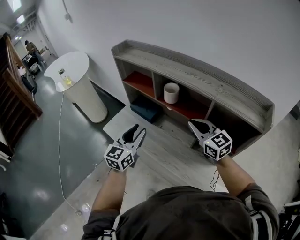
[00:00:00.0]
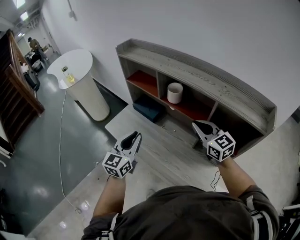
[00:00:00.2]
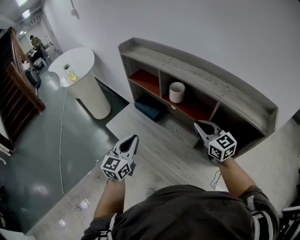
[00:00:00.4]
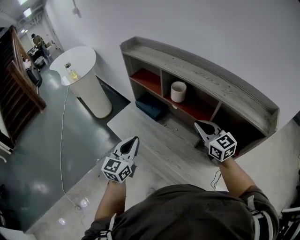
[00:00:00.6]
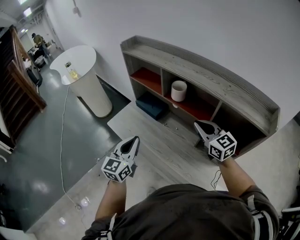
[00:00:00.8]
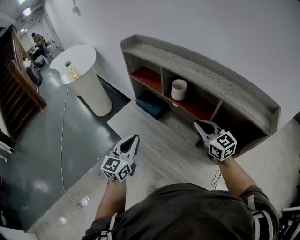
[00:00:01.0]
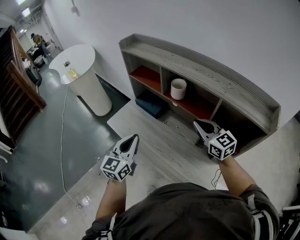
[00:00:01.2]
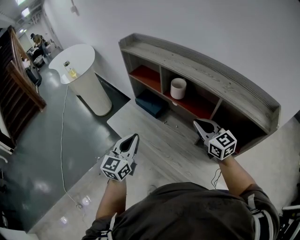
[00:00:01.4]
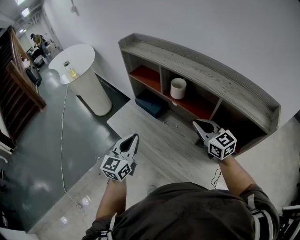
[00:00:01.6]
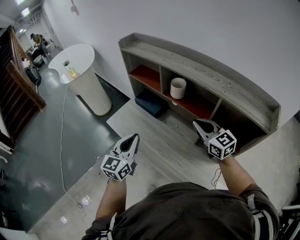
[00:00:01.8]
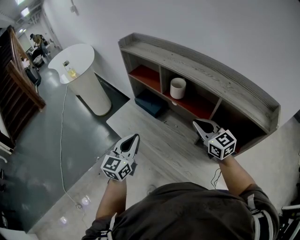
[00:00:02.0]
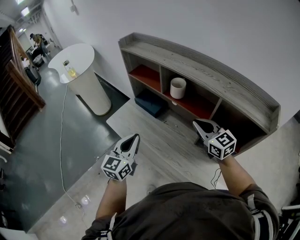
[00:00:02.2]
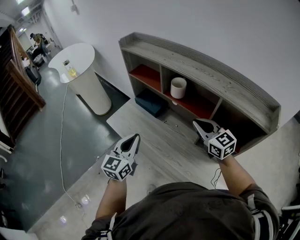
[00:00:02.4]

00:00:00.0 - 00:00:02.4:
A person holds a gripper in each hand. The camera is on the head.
00:00:00.0 - 00:00:01.2: The left gripper heads backward, covering approximately 5 cm, and closes its fingers.
00:00:01.2 - 00:00:02.4: The two grippers keep their place.

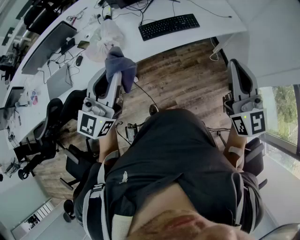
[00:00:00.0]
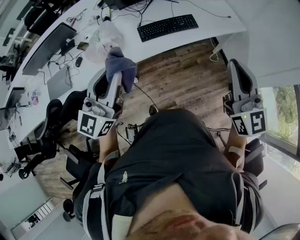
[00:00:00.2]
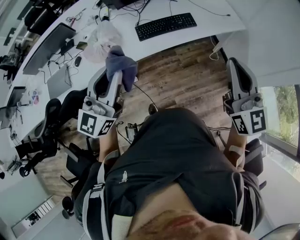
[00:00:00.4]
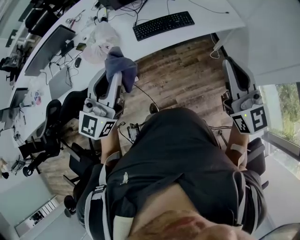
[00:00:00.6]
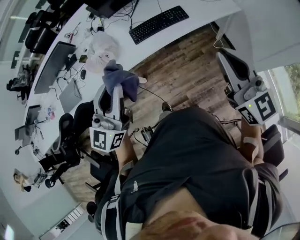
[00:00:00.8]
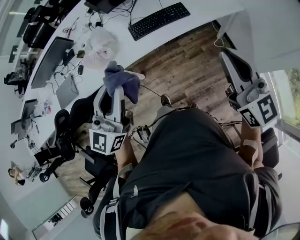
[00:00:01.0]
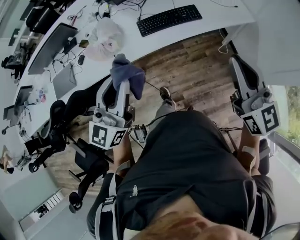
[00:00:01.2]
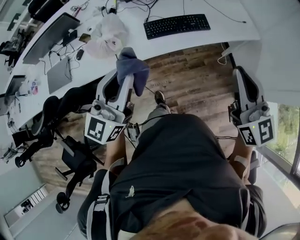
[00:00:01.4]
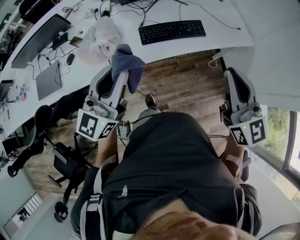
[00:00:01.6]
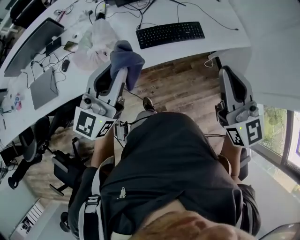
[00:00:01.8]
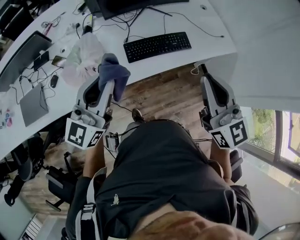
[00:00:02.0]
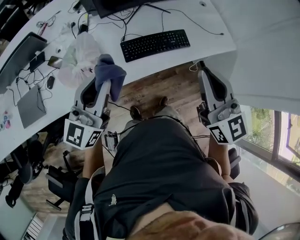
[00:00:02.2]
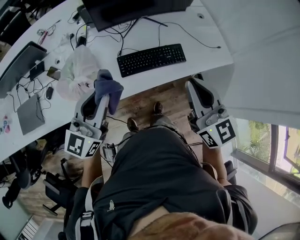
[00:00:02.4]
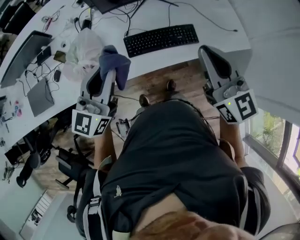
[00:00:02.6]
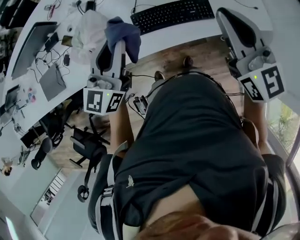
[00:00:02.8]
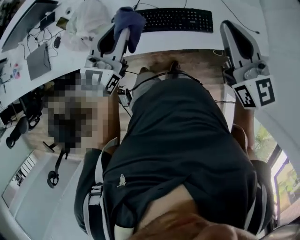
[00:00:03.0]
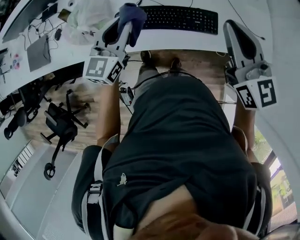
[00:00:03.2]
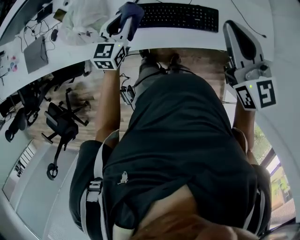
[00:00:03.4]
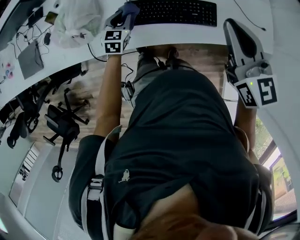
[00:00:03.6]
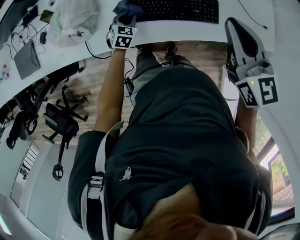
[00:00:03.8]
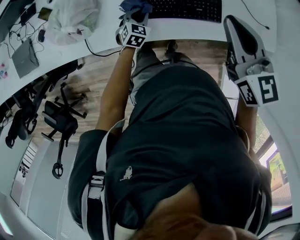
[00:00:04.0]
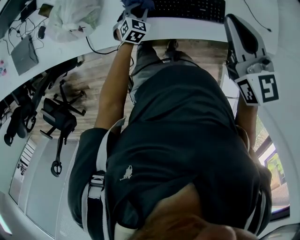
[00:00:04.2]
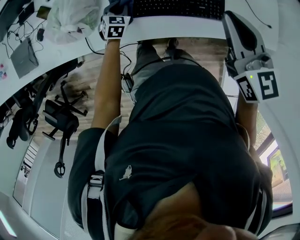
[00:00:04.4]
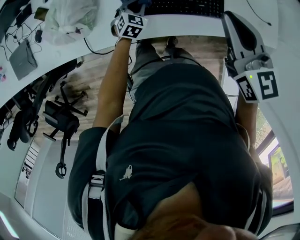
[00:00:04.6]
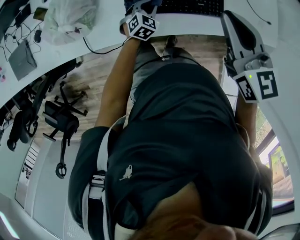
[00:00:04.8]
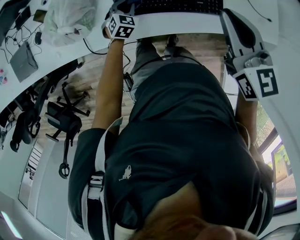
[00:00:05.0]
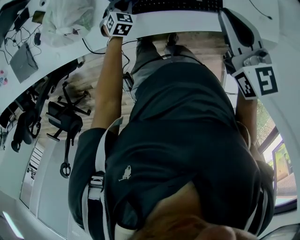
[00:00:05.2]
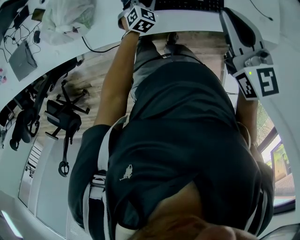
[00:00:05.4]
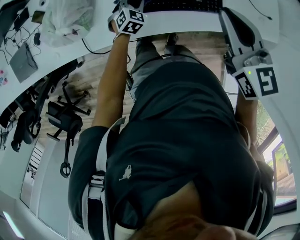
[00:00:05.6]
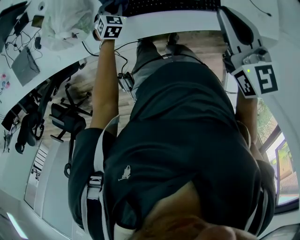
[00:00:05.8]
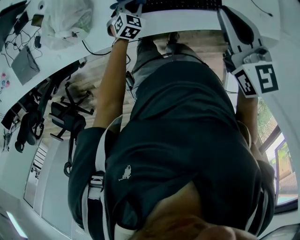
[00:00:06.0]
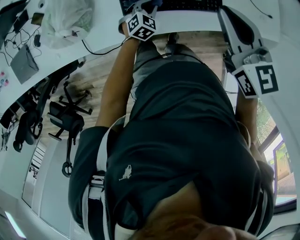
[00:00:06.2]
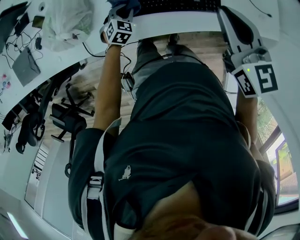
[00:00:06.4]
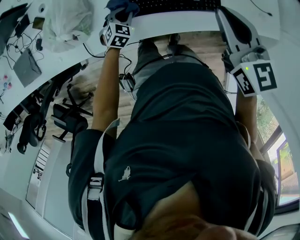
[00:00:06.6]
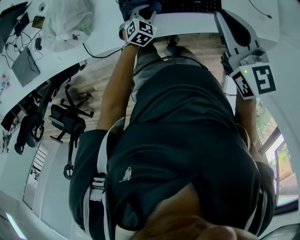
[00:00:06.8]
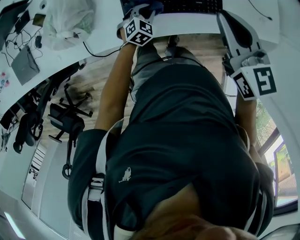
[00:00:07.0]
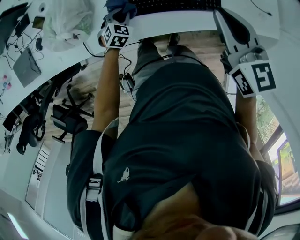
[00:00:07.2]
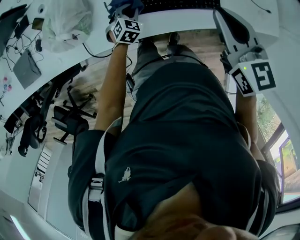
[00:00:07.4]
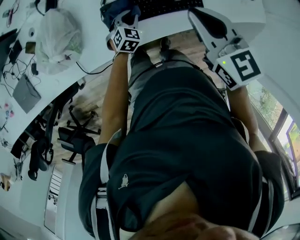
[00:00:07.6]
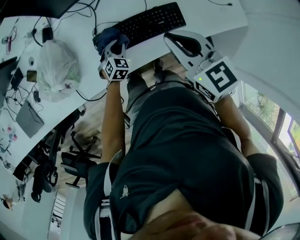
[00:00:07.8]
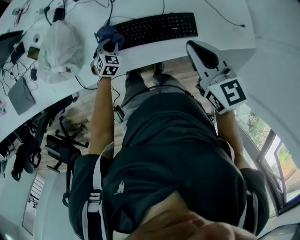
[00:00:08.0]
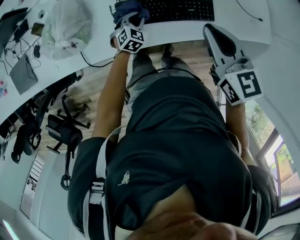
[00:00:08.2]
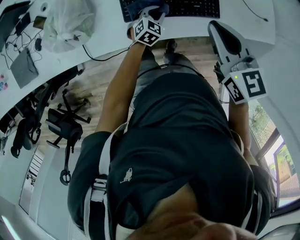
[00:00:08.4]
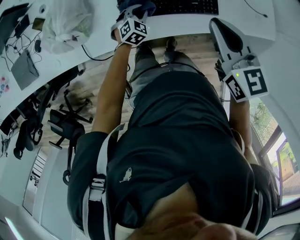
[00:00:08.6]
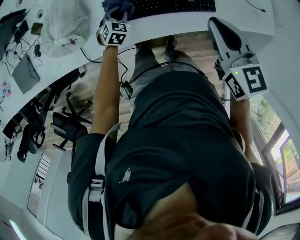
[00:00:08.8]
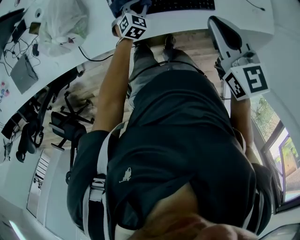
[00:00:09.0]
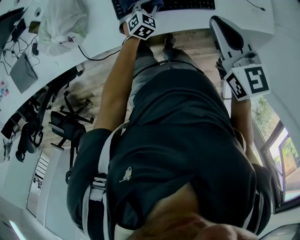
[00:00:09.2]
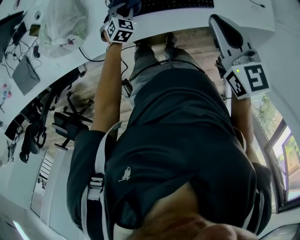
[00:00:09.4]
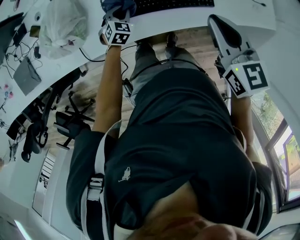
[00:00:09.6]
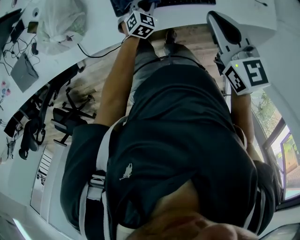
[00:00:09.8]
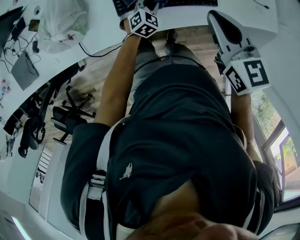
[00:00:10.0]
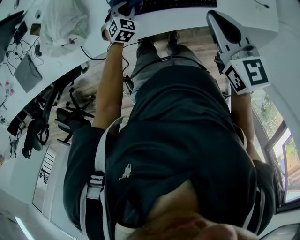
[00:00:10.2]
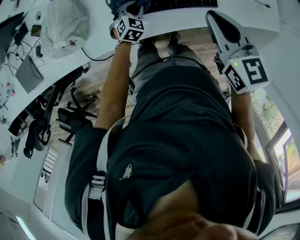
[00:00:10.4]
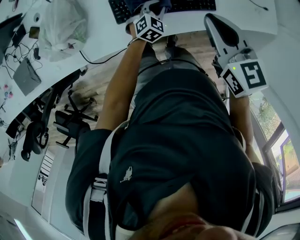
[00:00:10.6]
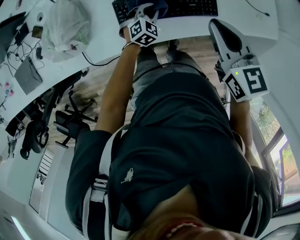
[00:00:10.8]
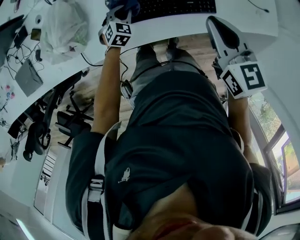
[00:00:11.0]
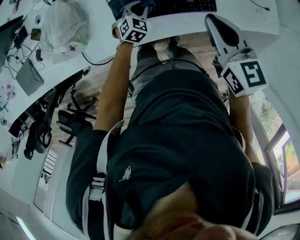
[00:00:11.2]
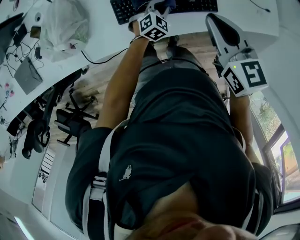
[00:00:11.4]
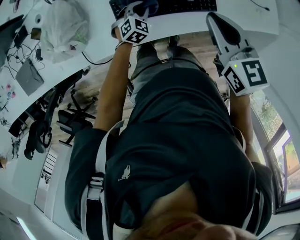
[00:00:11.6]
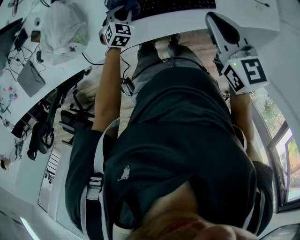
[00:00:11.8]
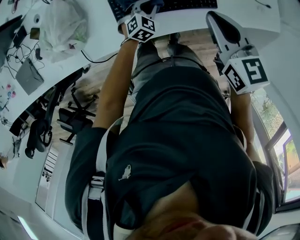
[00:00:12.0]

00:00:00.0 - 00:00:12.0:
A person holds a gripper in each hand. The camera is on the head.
00:00:00.0 - 00:00:01.6: Both grippers move forward, about 10 cm. The right gripper goes to the right and returns, approximately 10 cm each way.
00:00:01.6 - 00:00:03.0: The left gripper moves forward and downward, some 25 cm. The right gripper heads forward, covering approximately 30 cm.
00:00:03.0 - 00:00:04.4: The right gripper heads downward and forward, covering roughly 10 cm, while the left gripper heads downward, covering approximately 35 cm, and points its fingers some 40 degrees further downward.
00:00:04.4 - 00:00:06.0: The left gripper swings left and right, some 15 cm each way, with 4 reversals.
00:00:06.0 - 00:00:07.6: The left gripper moves left and right over approximately 10 cm, changing direction 4 times.
00:00:07.6 - 00:00:09.0: The left gripper swings left and right, approximately 15 cm each way, with 3 reversals.
00:00:09.0 - 00:00:10.4: The left gripper swings left and right, approximately 10 cm each way, with 3 reversals.
00:00:10.4 - 00:00:12.0: The left gripper goes left and right, about 15 cm each way, reversing 4 times.

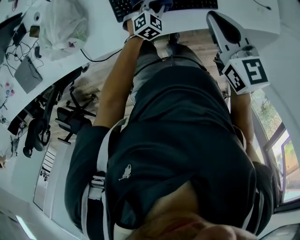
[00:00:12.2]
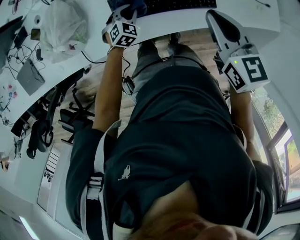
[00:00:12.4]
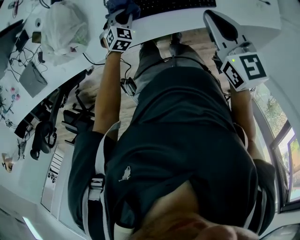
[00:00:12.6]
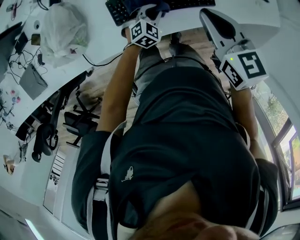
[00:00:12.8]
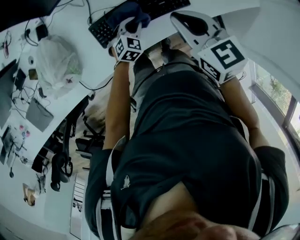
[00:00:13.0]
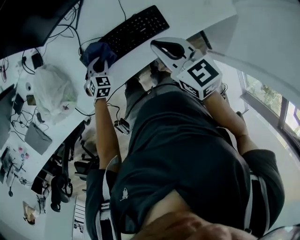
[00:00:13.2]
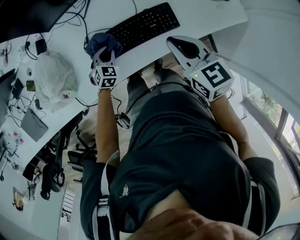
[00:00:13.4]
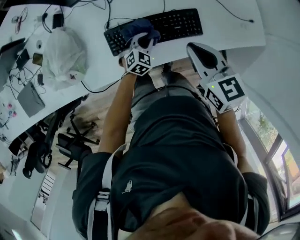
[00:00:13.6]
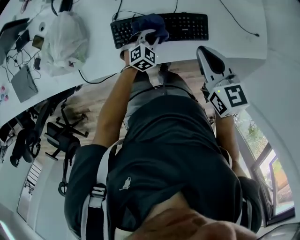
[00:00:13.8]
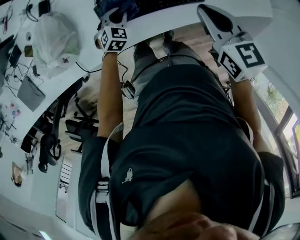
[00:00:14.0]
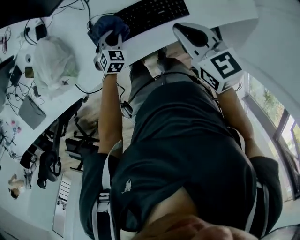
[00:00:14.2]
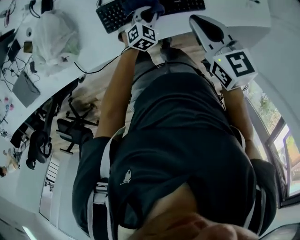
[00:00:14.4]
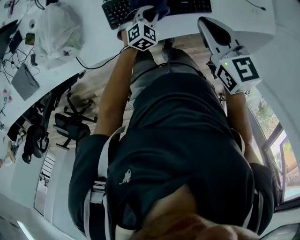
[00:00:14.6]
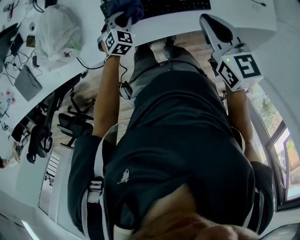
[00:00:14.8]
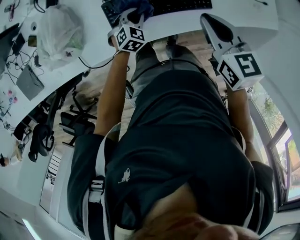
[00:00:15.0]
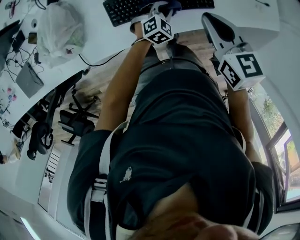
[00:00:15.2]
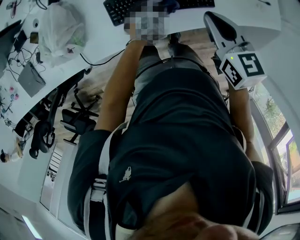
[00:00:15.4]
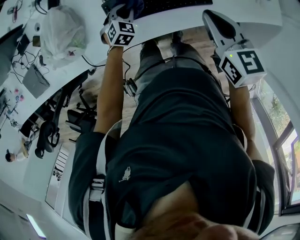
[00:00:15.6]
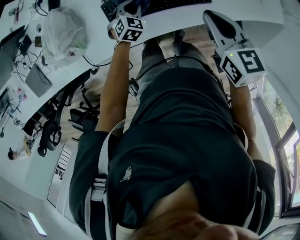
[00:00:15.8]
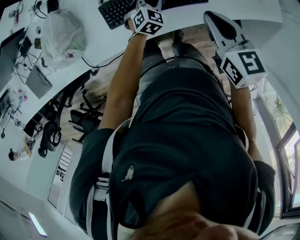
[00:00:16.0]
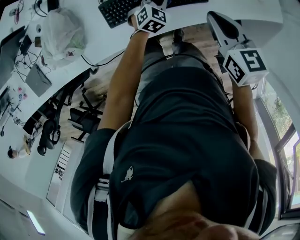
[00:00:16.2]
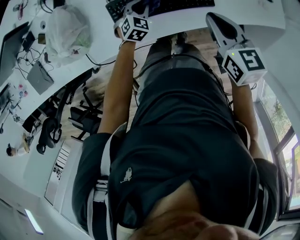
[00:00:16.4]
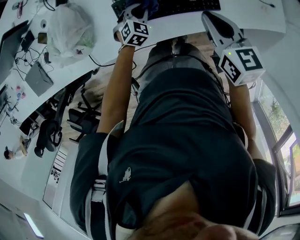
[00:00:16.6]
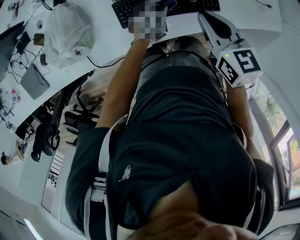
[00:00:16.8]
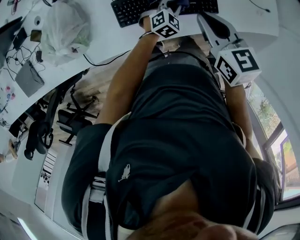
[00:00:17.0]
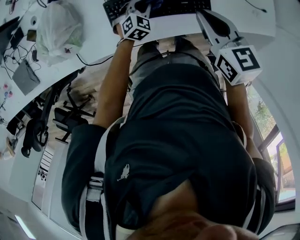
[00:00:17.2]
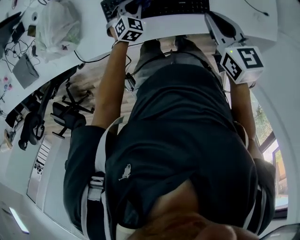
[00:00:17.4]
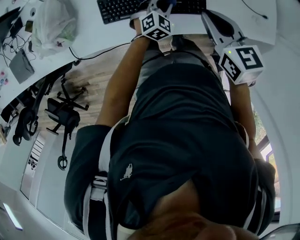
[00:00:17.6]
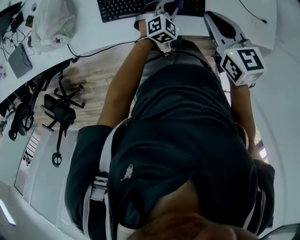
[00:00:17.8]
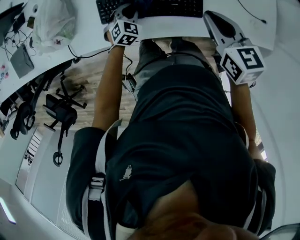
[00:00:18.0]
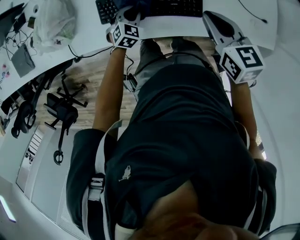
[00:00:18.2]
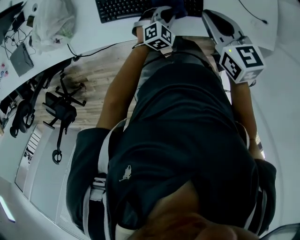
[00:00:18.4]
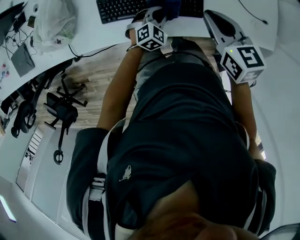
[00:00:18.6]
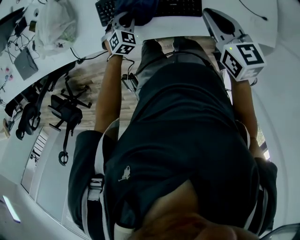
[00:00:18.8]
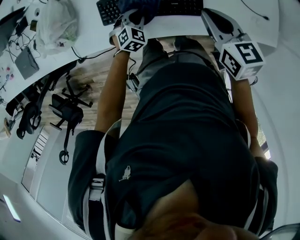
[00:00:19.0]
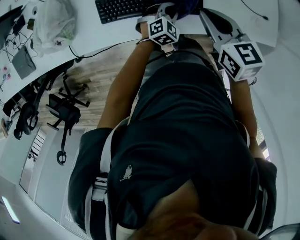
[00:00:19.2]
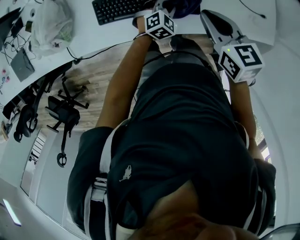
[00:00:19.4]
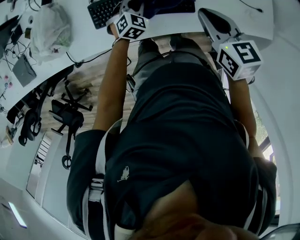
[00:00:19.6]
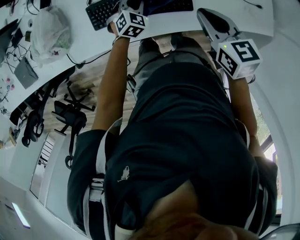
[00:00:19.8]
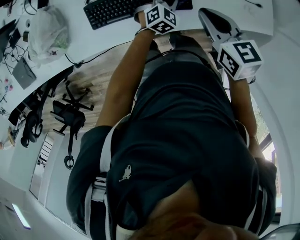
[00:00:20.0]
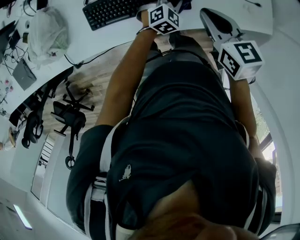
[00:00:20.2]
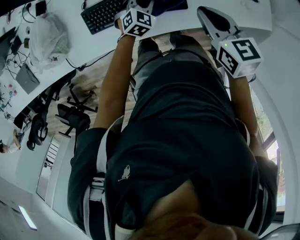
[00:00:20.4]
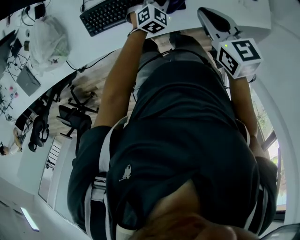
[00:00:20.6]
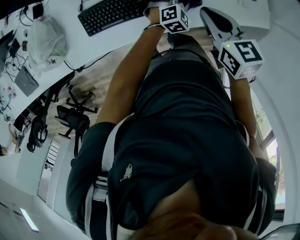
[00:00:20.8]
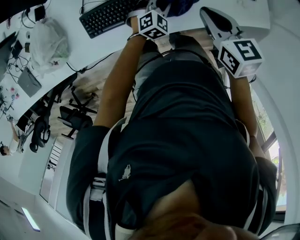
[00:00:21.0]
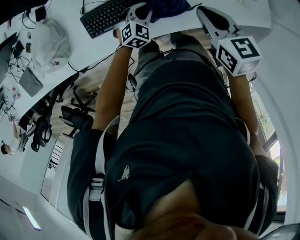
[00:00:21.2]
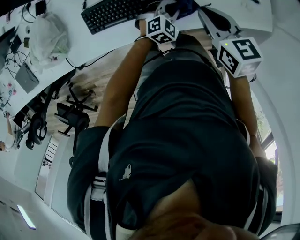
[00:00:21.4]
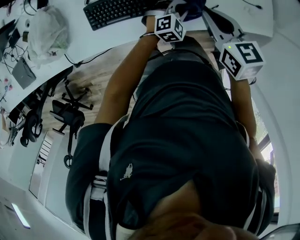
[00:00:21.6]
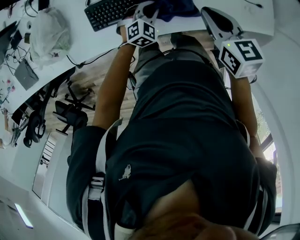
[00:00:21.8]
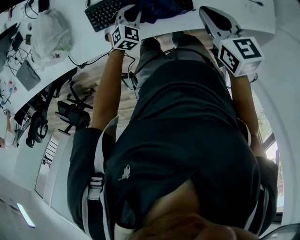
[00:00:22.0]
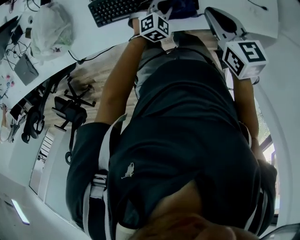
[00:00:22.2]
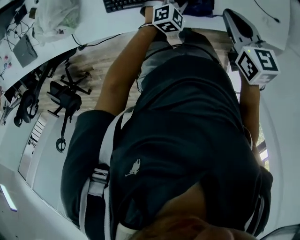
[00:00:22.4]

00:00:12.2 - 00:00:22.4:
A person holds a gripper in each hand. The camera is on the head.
00:00:12.2 - 00:00:13.6: The left gripper moves left and right over approximately 15 cm, changing direction 3 times.
00:00:13.6 - 00:00:15.2: The left gripper swings left and right, about 15 cm each way, with 3 reversals.
00:00:15.2 - 00:00:16.6: The left gripper swings left and right, some 15 cm each way, with 2 reversals.
00:00:16.6 - 00:00:18.0: The right gripper goes approximately 10 cm to the right, while the left gripper moves left and right over some 20 cm, changing direction 3 times.
00:00:18.0 - 00:00:19.4: The left gripper goes left and right, about 20 cm each way, reversing 2 times.
00:00:19.4 - 00:00:21.0: The right gripper travels to the right by roughly 5 cm. The left gripper goes left and right, some 25 cm each way, reversing 4 times.
00:00:21.0 - 00:00:22.4: The left gripper goes left and right, some 20 cm each way, reversing 3 times.
